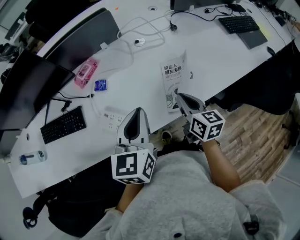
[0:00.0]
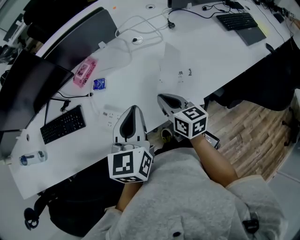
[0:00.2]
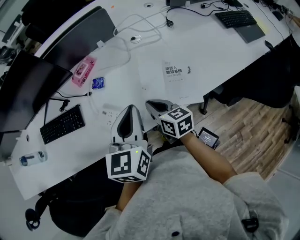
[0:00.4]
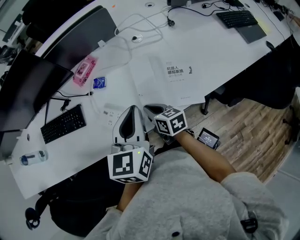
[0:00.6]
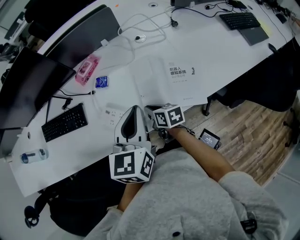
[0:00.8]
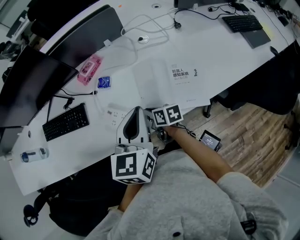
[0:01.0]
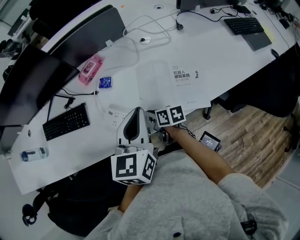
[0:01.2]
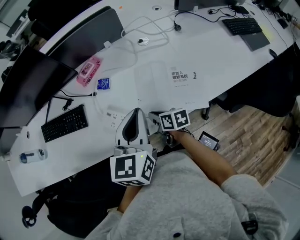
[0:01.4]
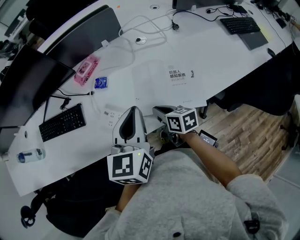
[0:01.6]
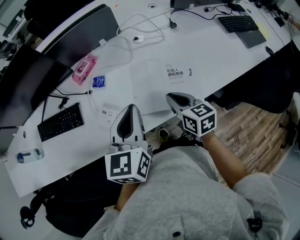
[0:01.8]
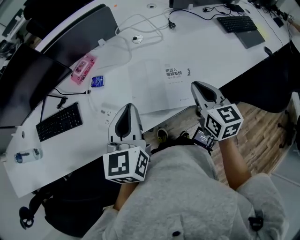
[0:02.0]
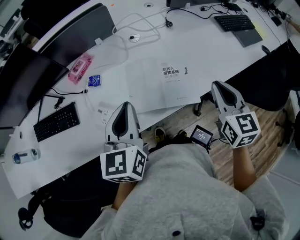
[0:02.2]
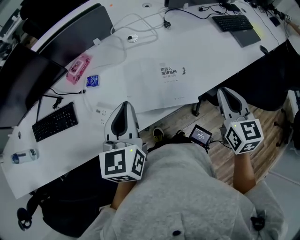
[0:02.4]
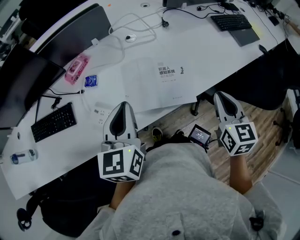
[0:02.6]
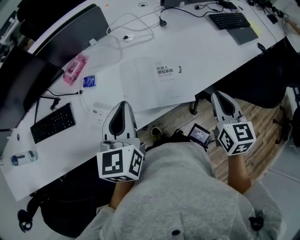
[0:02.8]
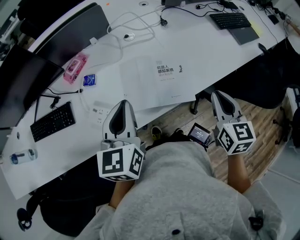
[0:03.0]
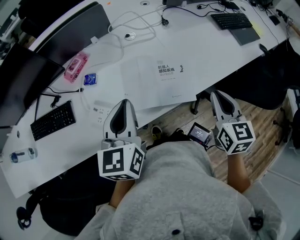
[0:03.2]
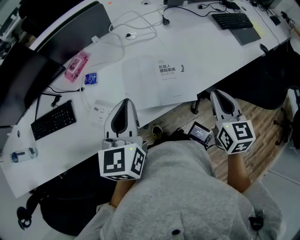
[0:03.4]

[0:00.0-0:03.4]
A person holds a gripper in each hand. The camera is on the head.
0:00.0 to 0:01.6: The right gripper shifts about 15 cm to the left and downward, and swivels approximately 30 degrees.
0:01.6 to 0:03.4: The right gripper heads to the right and upward, covering about 30 cm, and turns by some 50 degrees.

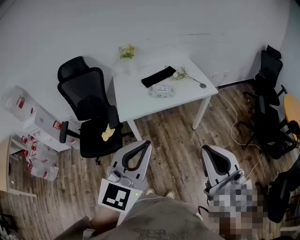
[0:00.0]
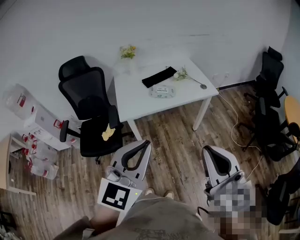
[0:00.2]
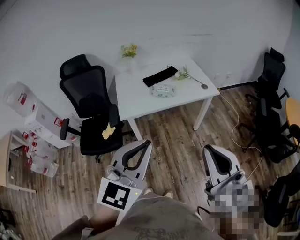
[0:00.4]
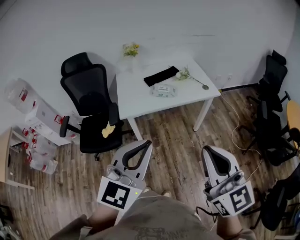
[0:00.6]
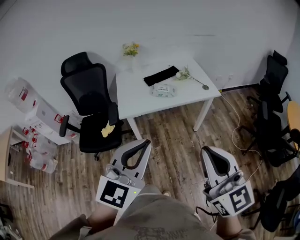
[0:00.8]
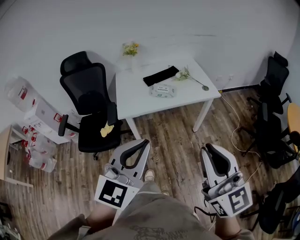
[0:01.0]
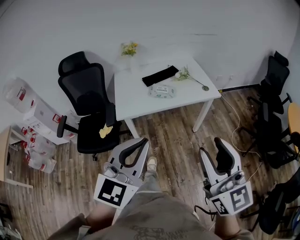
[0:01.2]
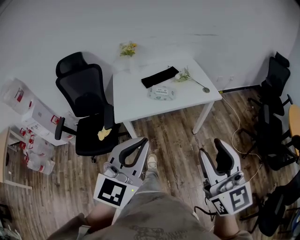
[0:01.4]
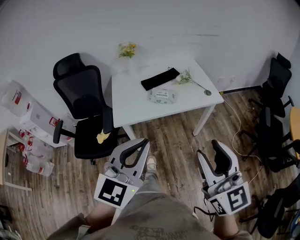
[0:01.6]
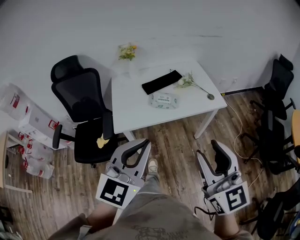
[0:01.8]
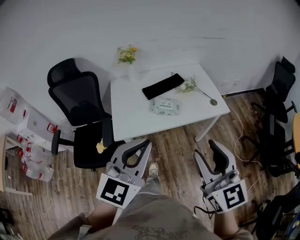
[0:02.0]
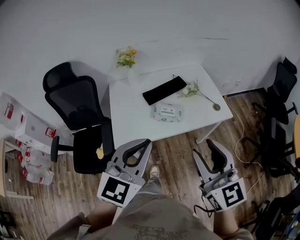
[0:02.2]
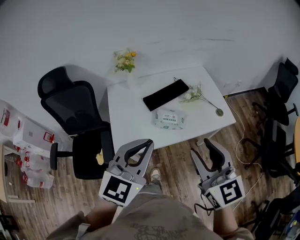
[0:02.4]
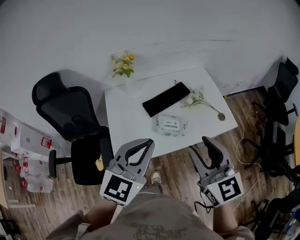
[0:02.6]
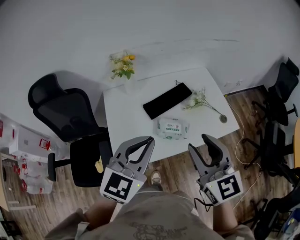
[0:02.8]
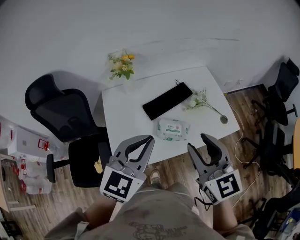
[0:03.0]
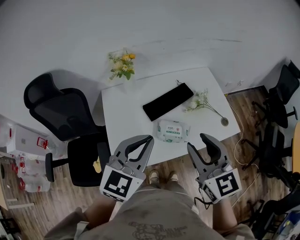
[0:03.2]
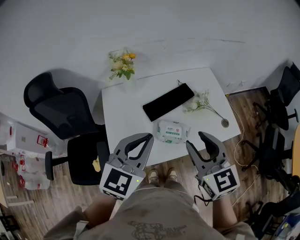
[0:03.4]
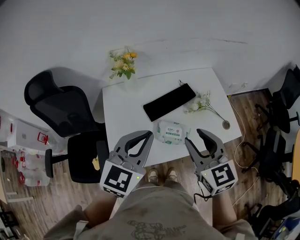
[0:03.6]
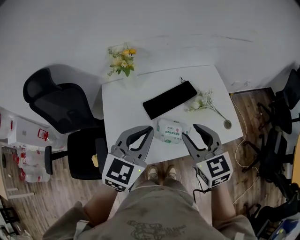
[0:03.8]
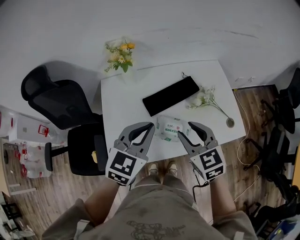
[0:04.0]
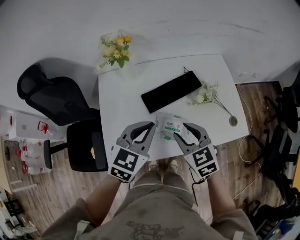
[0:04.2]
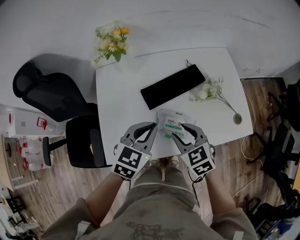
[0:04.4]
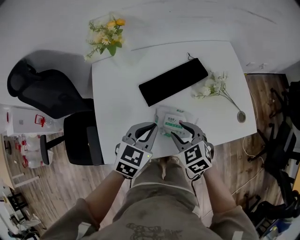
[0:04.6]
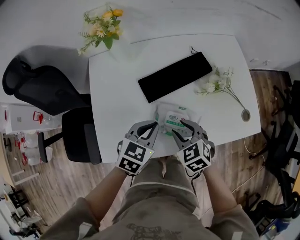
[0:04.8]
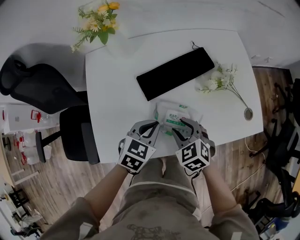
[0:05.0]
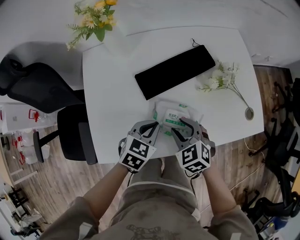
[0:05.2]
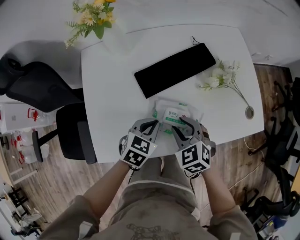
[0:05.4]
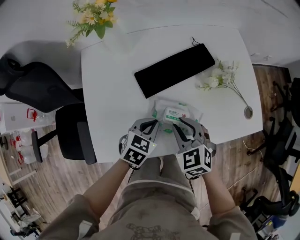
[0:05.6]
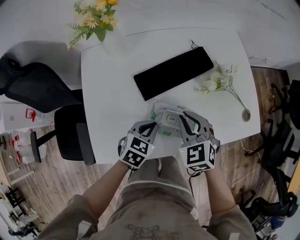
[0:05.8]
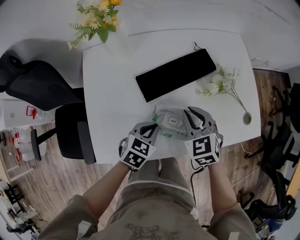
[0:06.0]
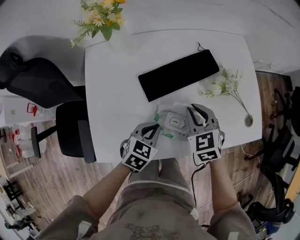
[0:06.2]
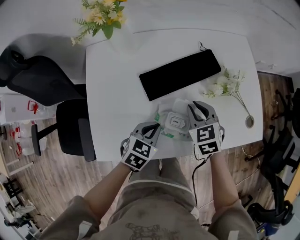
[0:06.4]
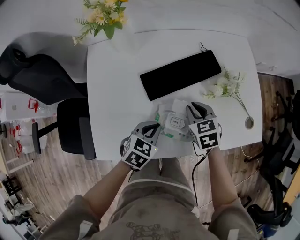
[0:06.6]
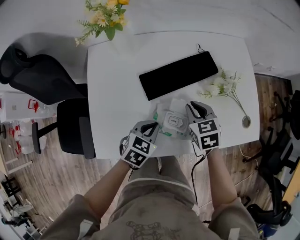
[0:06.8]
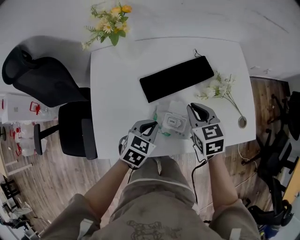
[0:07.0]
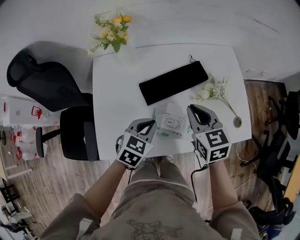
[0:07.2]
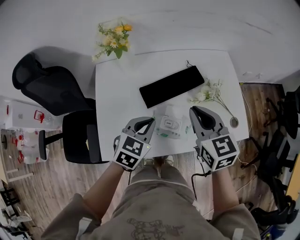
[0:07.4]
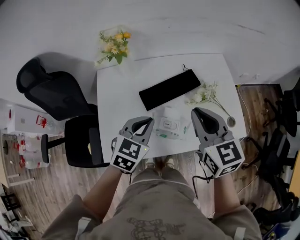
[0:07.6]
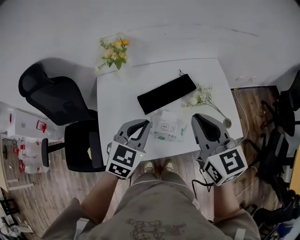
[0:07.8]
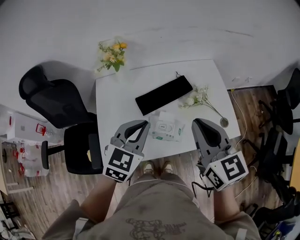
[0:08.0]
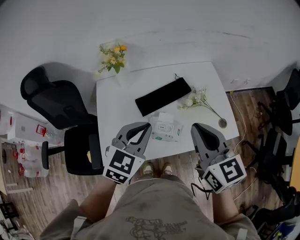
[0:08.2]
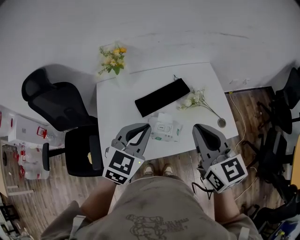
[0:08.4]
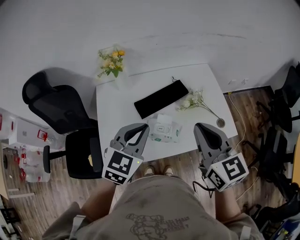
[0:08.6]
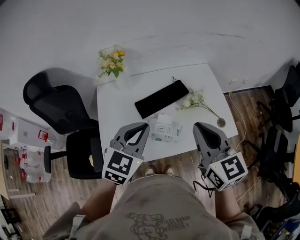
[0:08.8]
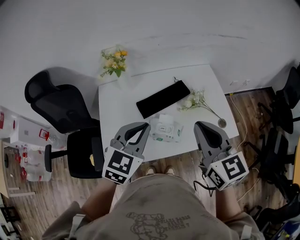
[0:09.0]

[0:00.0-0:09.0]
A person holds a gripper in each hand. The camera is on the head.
0:00.0 to 0:01.6: The grippers both shift forward by approximately 10 cm. The right gripper opens up.
0:01.6 to 0:03.0: The grippers both shift forward by roughly 35 cm.
0:03.0 to 0:04.4: The two grippers go approximately 25 cm downward and forward. The right gripper rotates some 30 degrees. The left gripper swivels some 20 degrees.
0:04.4 to 0:06.0: The right gripper travels forward and downward by about 10 cm, and closes its fingers, while the left gripper moves downward, about 20 cm.
0:06.0 to 0:07.6: Both grippers move upward, roughly 20 cm. The left gripper swivels some 20 degrees, while the right gripper changes its angle by some 30 degrees.
0:07.6 to 0:09.0: The left gripper shifts about 10 cm upward, while the right gripper moves backward and upward, some 10 cm.

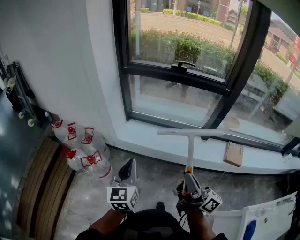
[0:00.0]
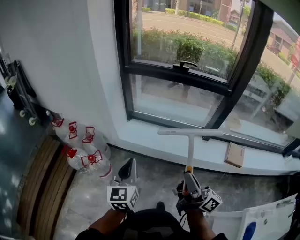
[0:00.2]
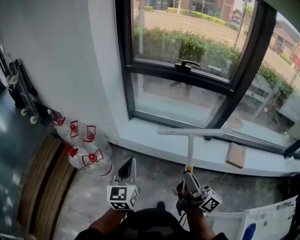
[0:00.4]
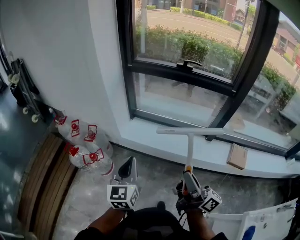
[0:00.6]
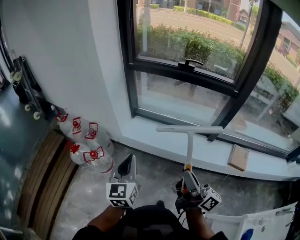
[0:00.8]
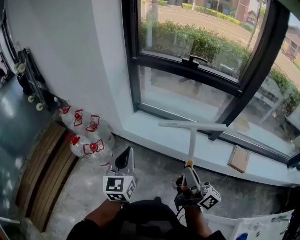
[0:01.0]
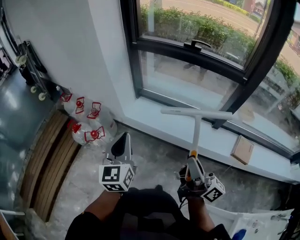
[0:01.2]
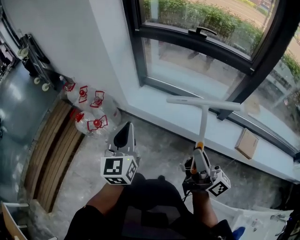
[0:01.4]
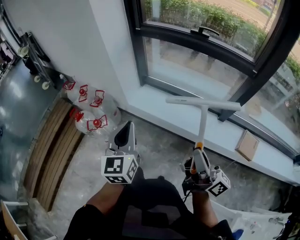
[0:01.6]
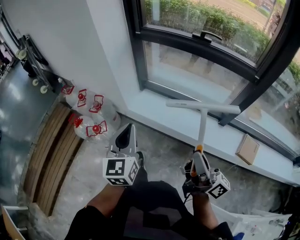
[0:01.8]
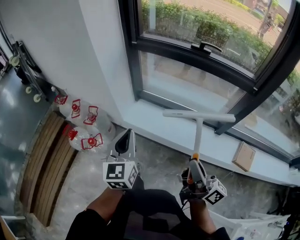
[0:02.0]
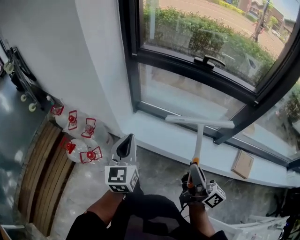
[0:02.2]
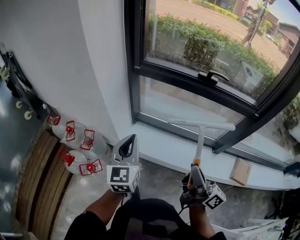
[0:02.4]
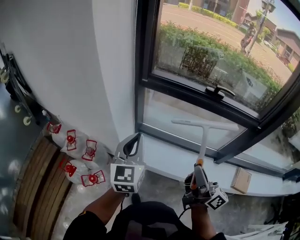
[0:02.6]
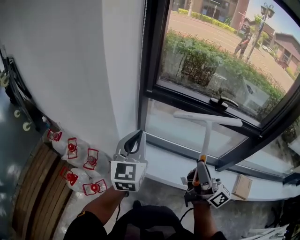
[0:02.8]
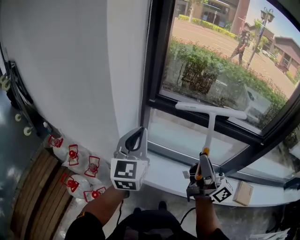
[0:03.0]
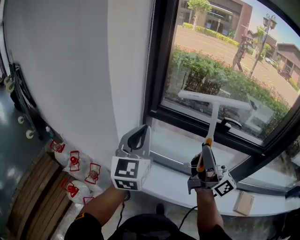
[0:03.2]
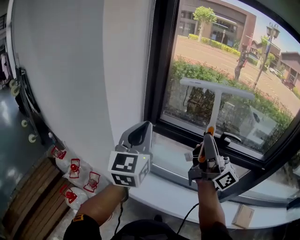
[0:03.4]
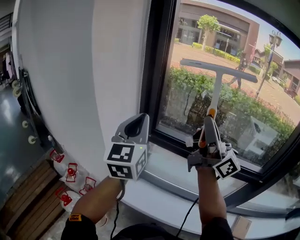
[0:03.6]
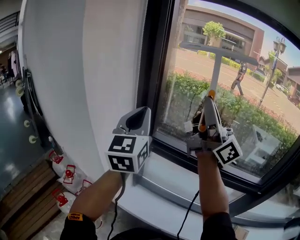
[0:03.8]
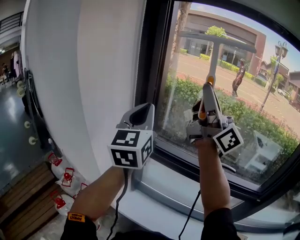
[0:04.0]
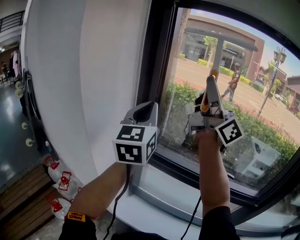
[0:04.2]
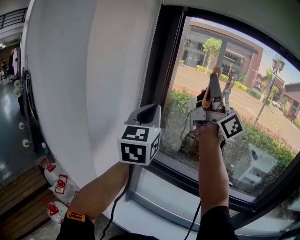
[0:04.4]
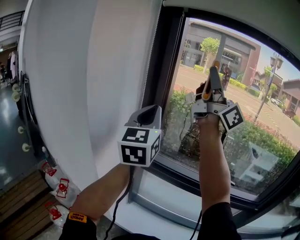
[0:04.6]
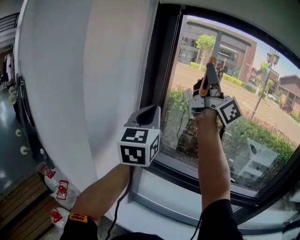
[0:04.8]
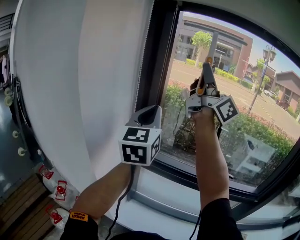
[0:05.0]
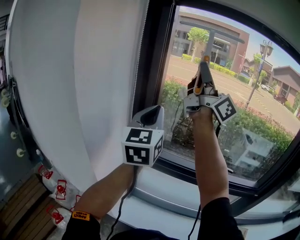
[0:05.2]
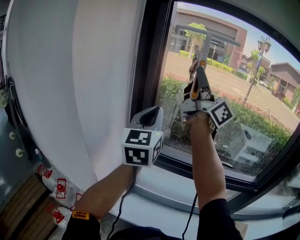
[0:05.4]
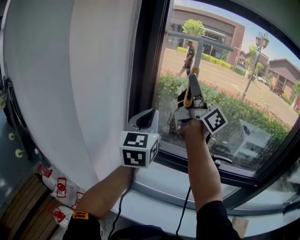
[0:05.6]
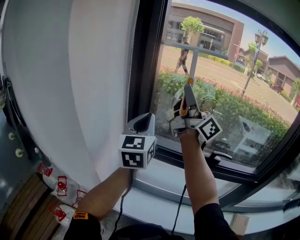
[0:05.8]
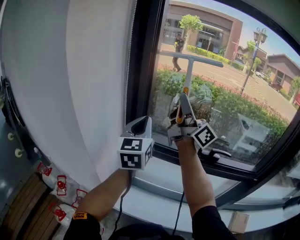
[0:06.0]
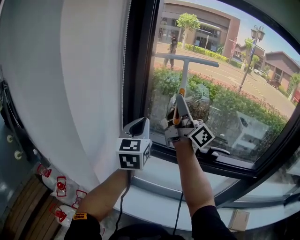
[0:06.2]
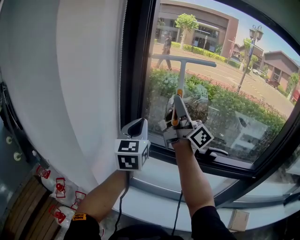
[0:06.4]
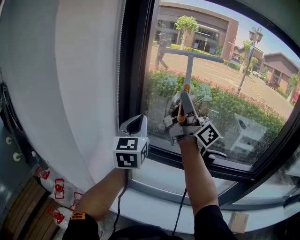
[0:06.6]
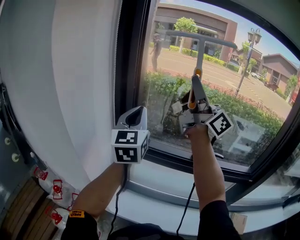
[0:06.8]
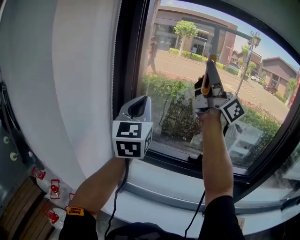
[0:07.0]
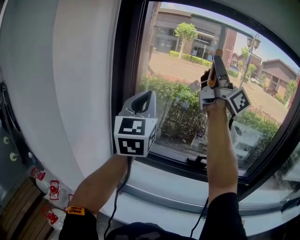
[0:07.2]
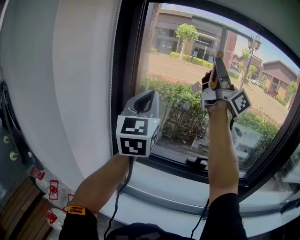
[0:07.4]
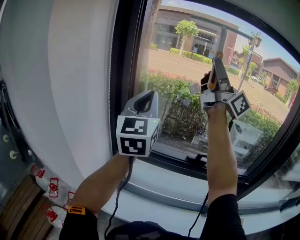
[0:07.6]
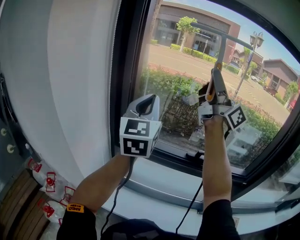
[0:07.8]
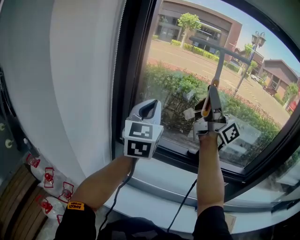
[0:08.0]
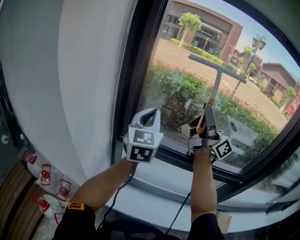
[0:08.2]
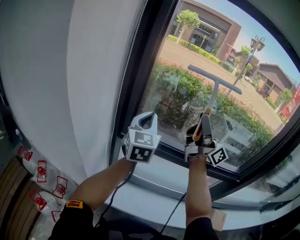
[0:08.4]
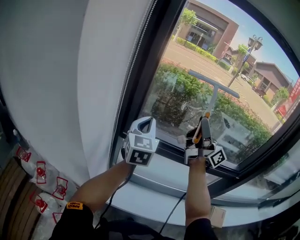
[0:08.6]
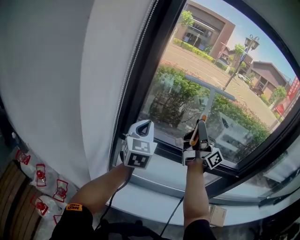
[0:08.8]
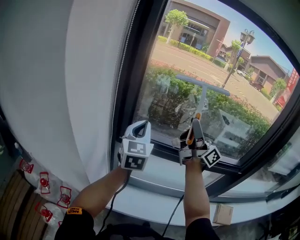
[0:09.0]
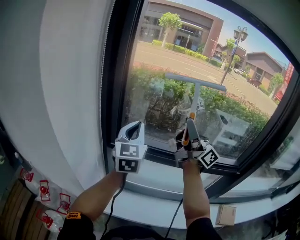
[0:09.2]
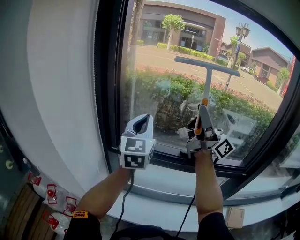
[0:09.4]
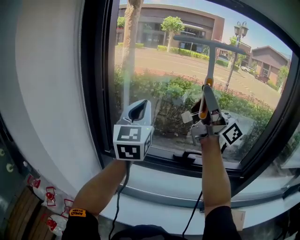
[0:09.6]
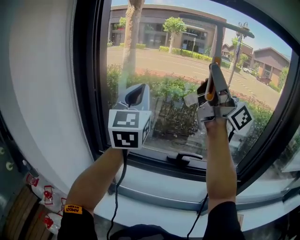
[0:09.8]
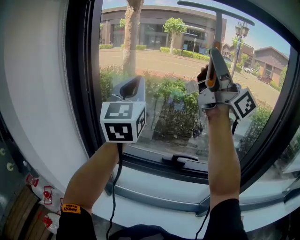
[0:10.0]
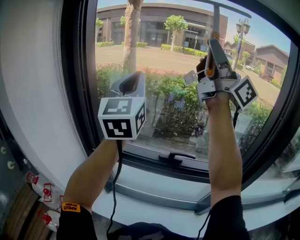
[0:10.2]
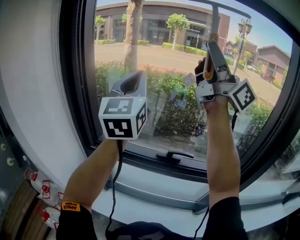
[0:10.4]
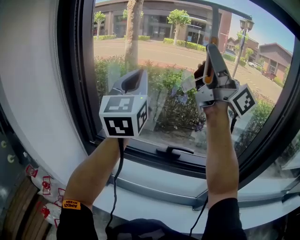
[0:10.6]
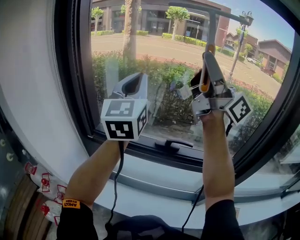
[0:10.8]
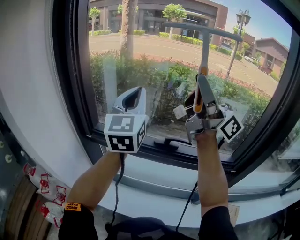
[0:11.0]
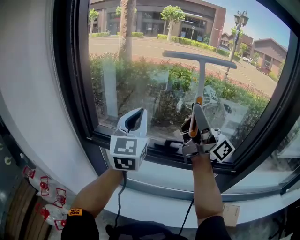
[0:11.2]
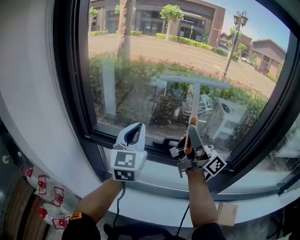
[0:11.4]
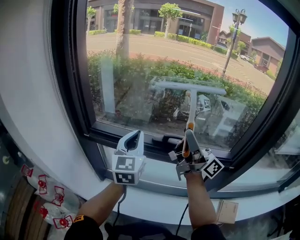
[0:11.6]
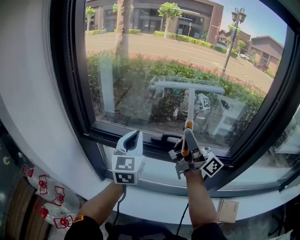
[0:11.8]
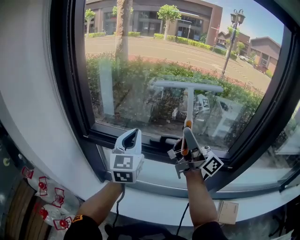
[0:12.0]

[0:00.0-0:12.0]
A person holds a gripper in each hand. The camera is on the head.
0:00.0 to 0:01.6: The left gripper ends up approximately 5 cm from where it was; the right gripper shifts some 10 cm to the right.
0:01.6 to 0:03.0: The grippers both shift forward by some 40 cm.
0:03.0 to 0:04.4: The right gripper travels upward and forward by about 50 cm, and changes its angle by approximately 30 degrees, while the left gripper moves upward, forward and to the right, about 30 cm.
0:04.4 to 0:06.0: Both grippers travel together downward, roughly 15 cm.
0:06.0 to 0:07.6: The right gripper heads upward and to the right, covering roughly 20 cm. Meanwhile the left gripper heads upward and to the right, covering some 15 cm.
0:07.6 to 0:09.0: Both grippers move downward, approximately 20 cm.
0:09.0 to 0:10.4: The two grippers go some 30 cm upward and to the right. The left gripper rotates approximately 20 degrees, while the right gripper turns by roughly 20 degrees.
0:10.4 to 0:12.0: The grippers both shift downward by some 30 cm. The right gripper turns by about 20 degrees.
